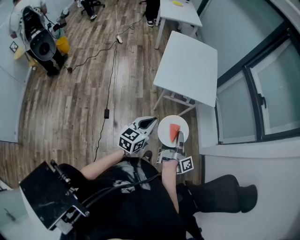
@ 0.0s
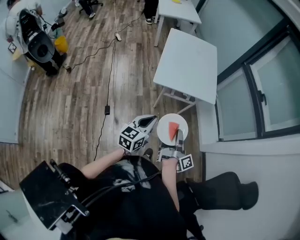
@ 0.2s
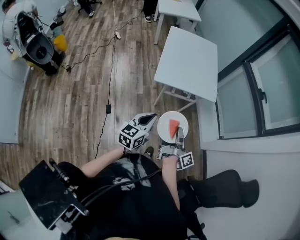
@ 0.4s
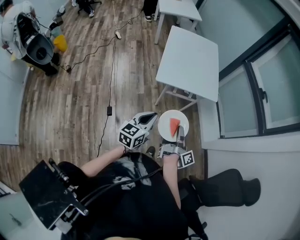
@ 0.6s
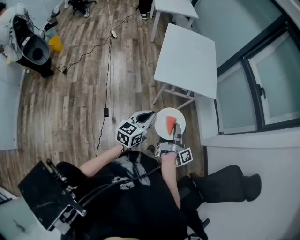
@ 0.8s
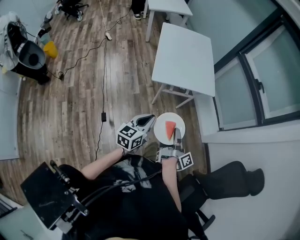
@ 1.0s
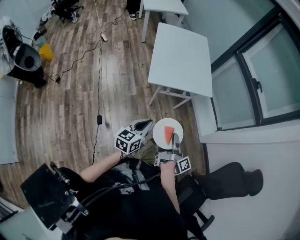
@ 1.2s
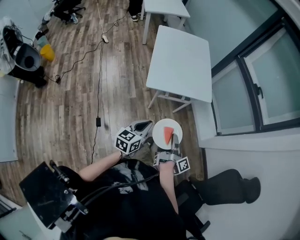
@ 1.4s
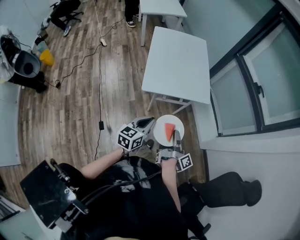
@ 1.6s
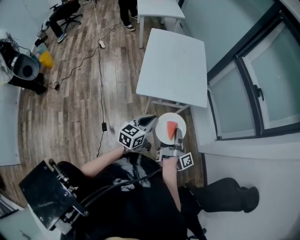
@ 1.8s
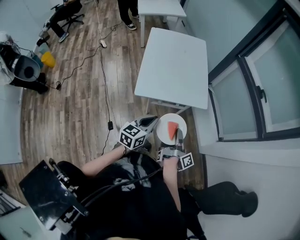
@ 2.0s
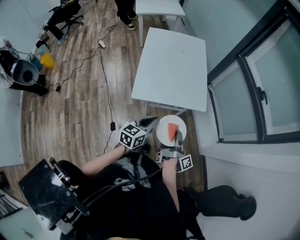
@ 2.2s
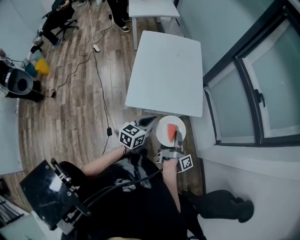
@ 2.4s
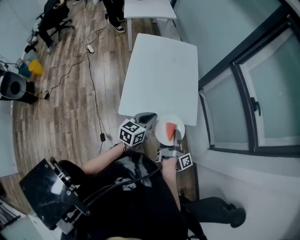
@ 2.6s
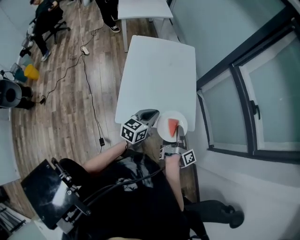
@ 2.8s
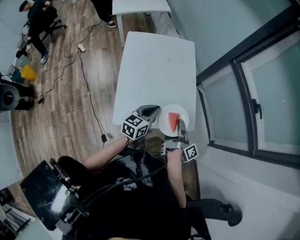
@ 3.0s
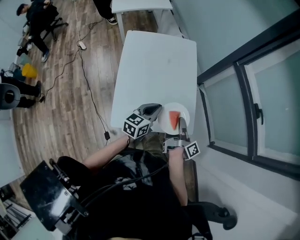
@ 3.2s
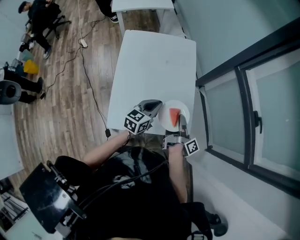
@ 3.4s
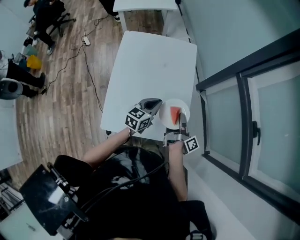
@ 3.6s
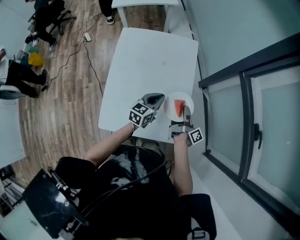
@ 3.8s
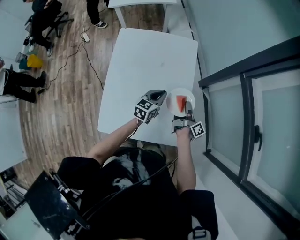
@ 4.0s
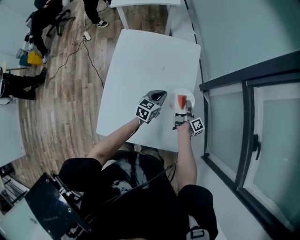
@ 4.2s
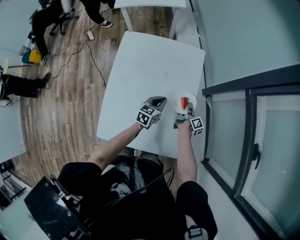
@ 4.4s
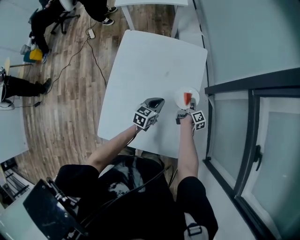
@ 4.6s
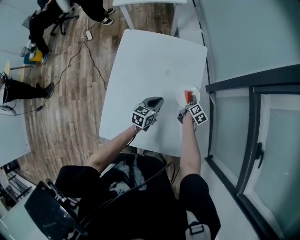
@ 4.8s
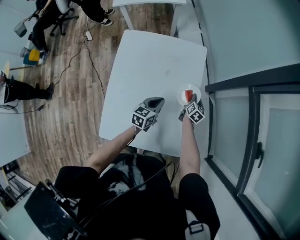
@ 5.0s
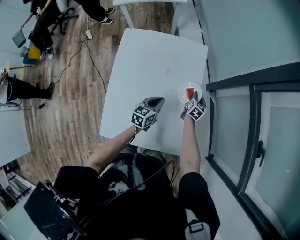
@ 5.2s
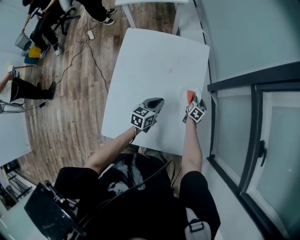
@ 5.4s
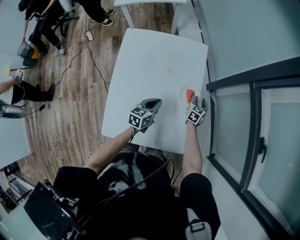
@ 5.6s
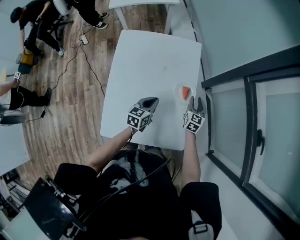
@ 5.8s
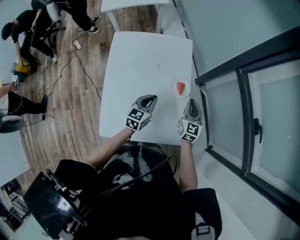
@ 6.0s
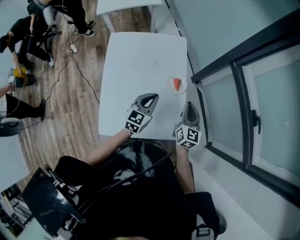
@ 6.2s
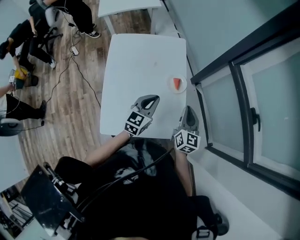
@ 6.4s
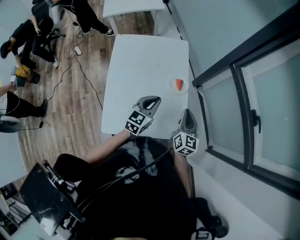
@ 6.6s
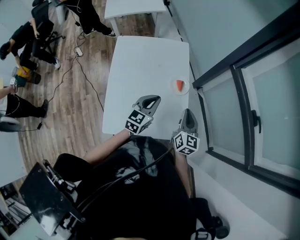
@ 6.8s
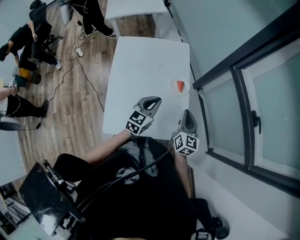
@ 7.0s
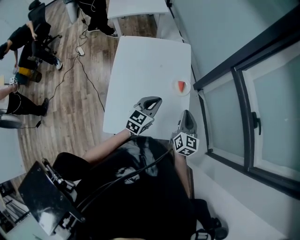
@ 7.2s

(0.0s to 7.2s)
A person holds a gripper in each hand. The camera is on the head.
0.0s - 1.4s: The left gripper shifts by some 10 cm.
1.4s - 2.8s: The left gripper ends up approximately 40 cm from where it was.
2.8s - 4.4s: The left gripper shifts by about 40 cm.
4.4s - 5.8s: The left gripper moves roughly 5 cm.
5.8s - 7.2s: The left gripper is displaced upward by roughly 15 cm, and rotates approximately 20 degrees.

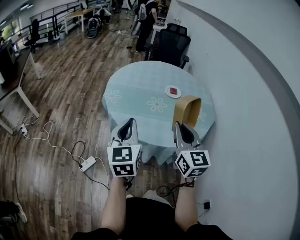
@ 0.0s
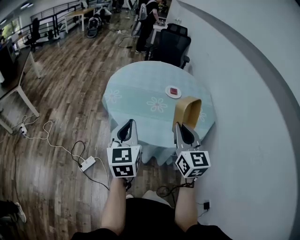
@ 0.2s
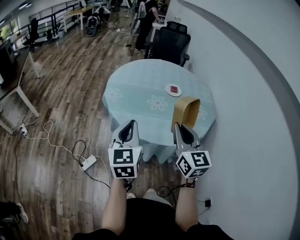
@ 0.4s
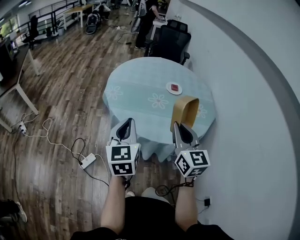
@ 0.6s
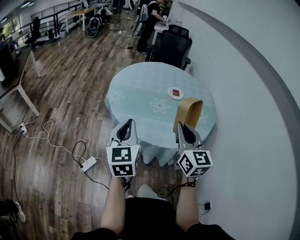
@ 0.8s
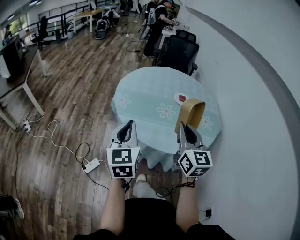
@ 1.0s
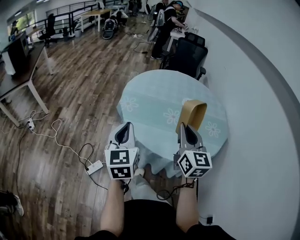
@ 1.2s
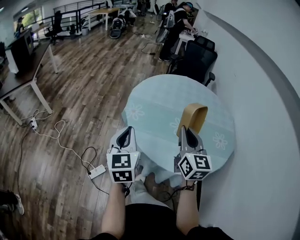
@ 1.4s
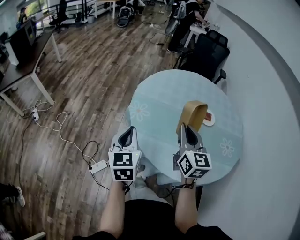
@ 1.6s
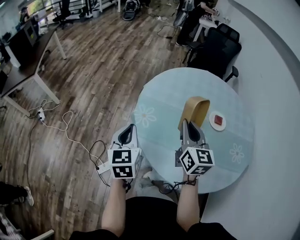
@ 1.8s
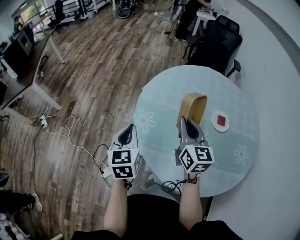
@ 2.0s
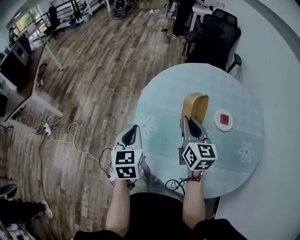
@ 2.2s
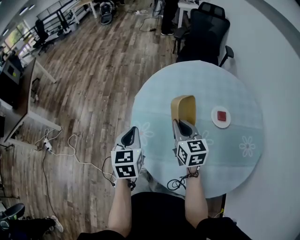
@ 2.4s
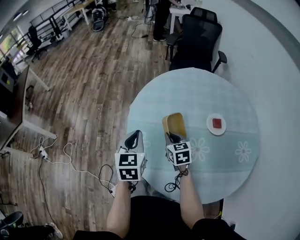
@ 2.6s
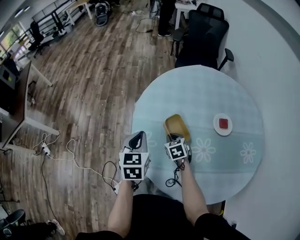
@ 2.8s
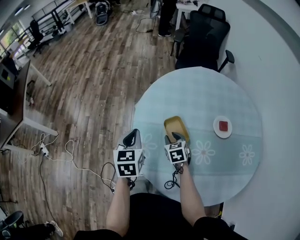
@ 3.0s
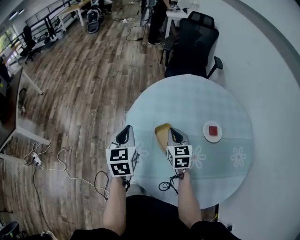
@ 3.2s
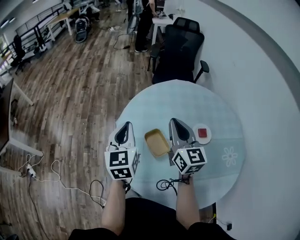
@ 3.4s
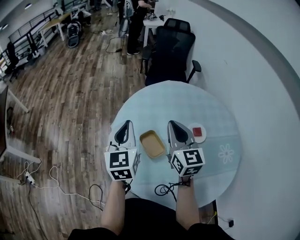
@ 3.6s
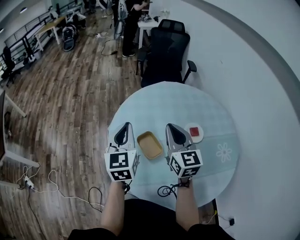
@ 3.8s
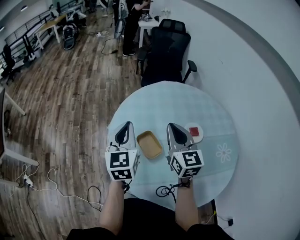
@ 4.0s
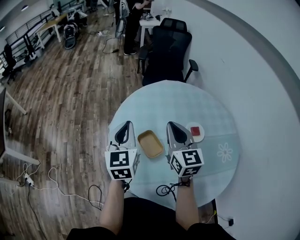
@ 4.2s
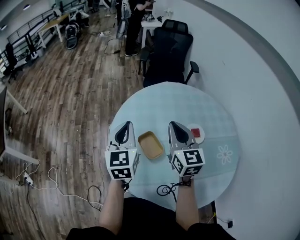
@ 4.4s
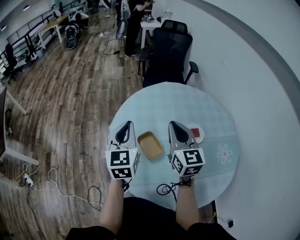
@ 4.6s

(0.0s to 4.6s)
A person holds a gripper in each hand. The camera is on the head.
0.0s - 1.6s: The grippers both shift forward and to the left by some 25 cm.
1.6s - 3.0s: The left gripper heads forward, covering roughly 35 cm, while the right gripper travels forward and downward by some 40 cm, angles its fingers downward, by roughly 40 degrees, and opens.
3.0s - 4.6s: The left gripper goes about 15 cm upward and to the right, and rotates roughly 20 degrees; the right gripper moves upward, some 30 cm, points its fingers approximately 40 degrees further upward, and closes.

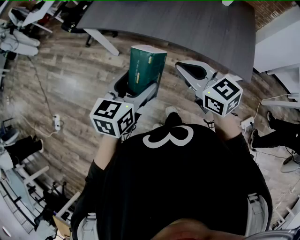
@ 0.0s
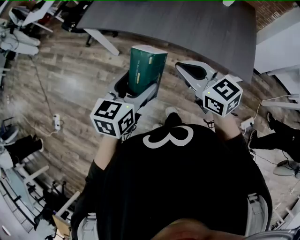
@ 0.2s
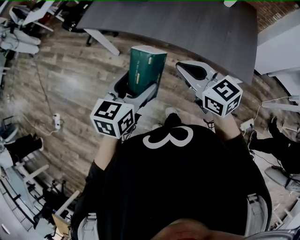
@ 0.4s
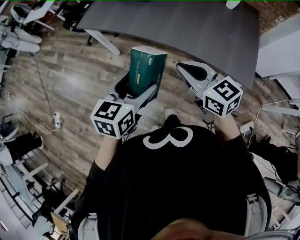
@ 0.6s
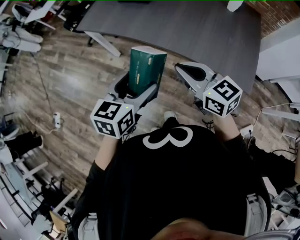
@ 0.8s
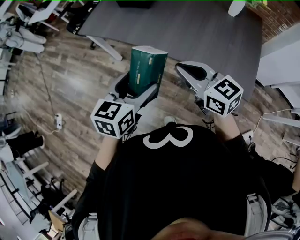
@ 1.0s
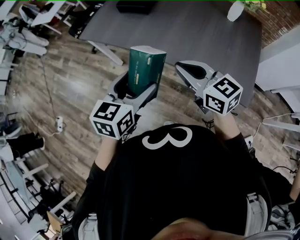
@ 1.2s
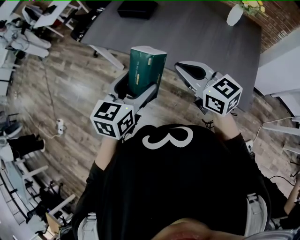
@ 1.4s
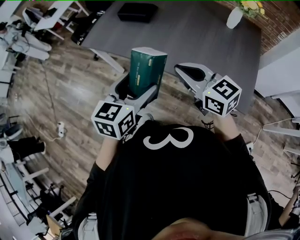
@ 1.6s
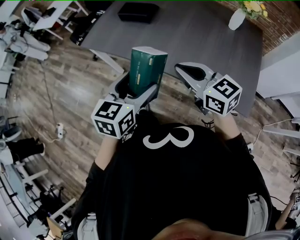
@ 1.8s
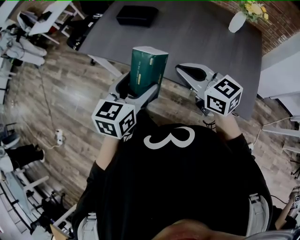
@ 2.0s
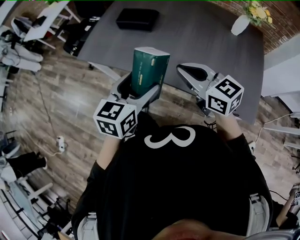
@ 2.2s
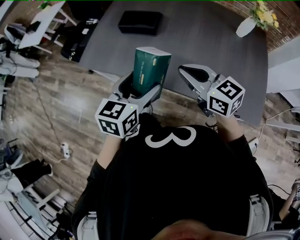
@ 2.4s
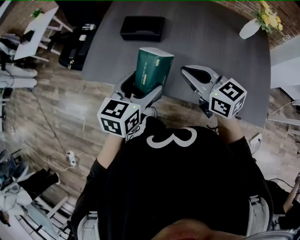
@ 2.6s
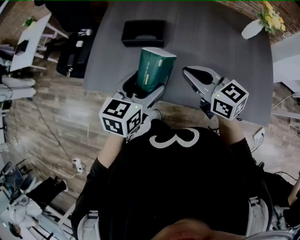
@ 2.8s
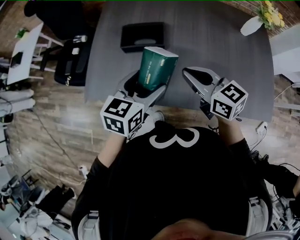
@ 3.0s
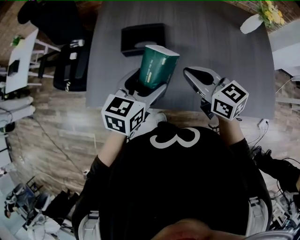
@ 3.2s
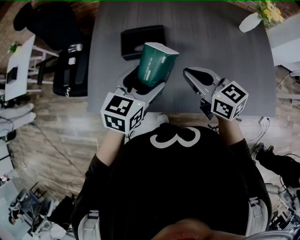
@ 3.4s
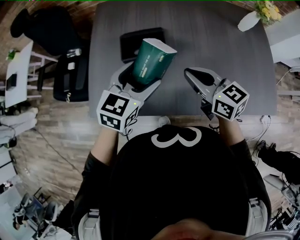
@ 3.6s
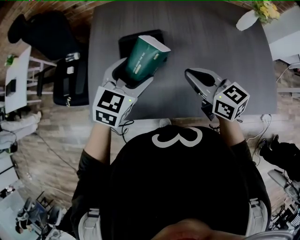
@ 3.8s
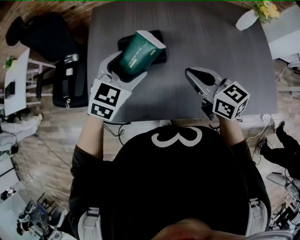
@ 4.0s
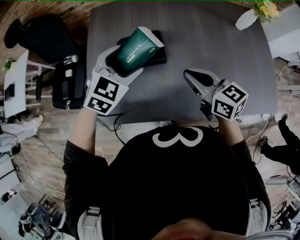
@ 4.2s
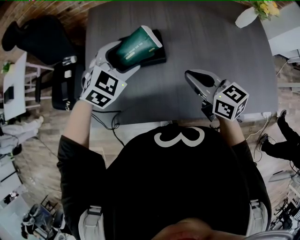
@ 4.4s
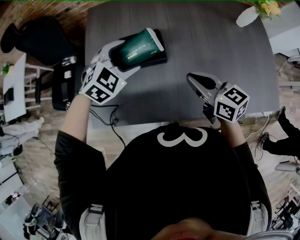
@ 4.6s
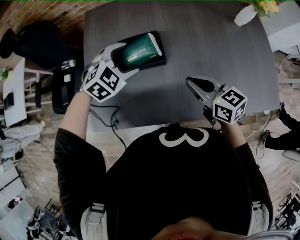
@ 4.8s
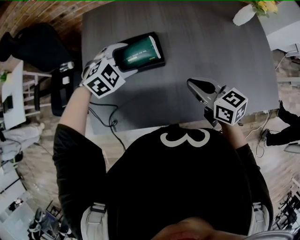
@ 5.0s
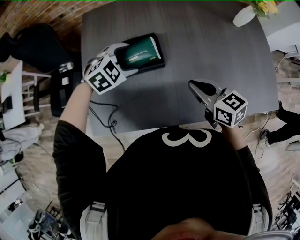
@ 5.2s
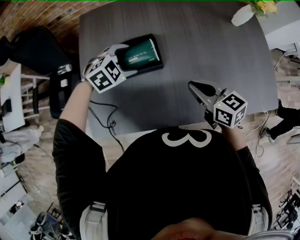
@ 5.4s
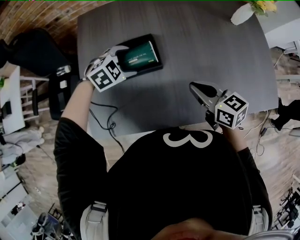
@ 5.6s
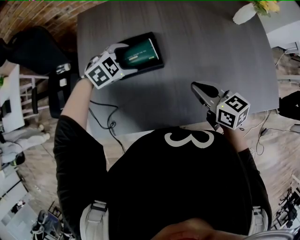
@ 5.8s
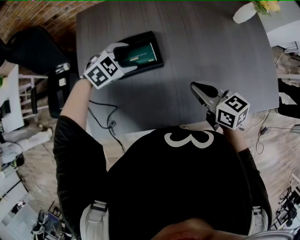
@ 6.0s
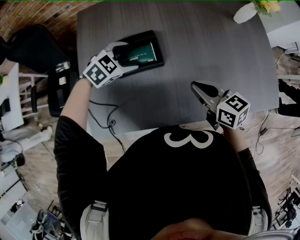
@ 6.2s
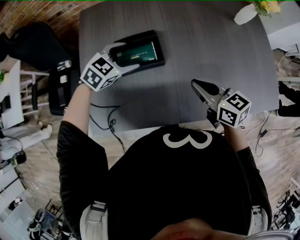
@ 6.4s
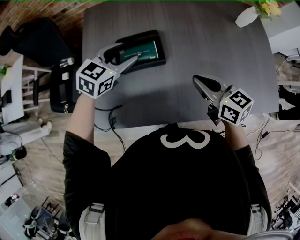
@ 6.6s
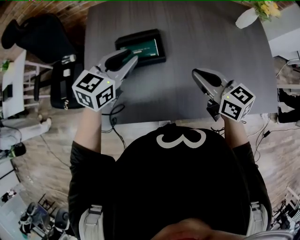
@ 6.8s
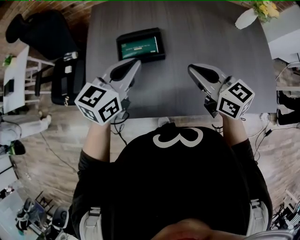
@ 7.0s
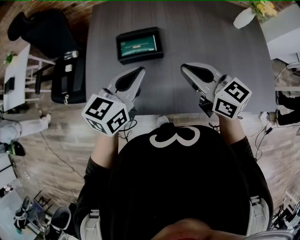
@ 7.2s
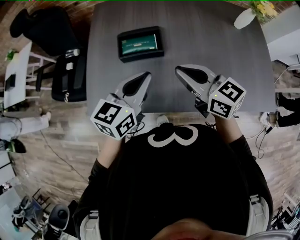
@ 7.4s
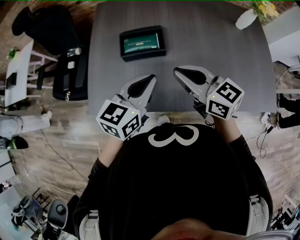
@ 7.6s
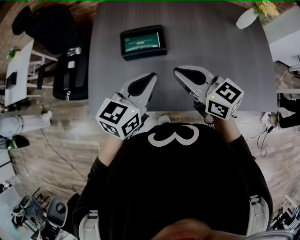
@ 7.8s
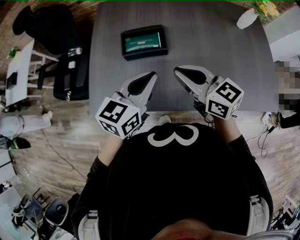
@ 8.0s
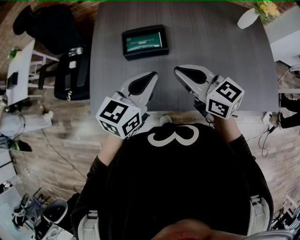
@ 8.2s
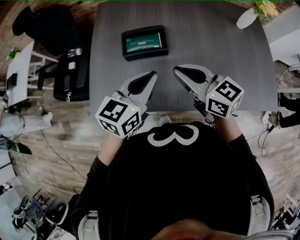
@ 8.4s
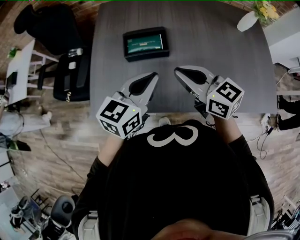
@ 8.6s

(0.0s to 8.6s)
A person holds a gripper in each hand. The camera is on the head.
0.0s - 1.4s: The two grippers go approximately 10 cm forward and to the right.
1.4s - 2.8s: Both grippers travel together forward, some 30 cm.
2.8s - 4.4s: The right gripper is displaced forward and downward by approximately 10 cm. Meanwhile the left gripper shifts some 20 cm forward, and rolls clockwise, seen from behind, by some 50 degrees.
4.4s - 5.8s: The left gripper heads downward and forward, covering about 15 cm, and swivels roughly 30 degrees, while the right gripper goes roughly 5 cm downward.
5.8s - 7.2s: The right gripper heads upward, covering some 10 cm, while the left gripper shifts about 25 cm upward and backward, tips its fingers upward by roughly 40 degrees, and closes its fingers.
7.2s - 8.6s: The grippers move only a little.

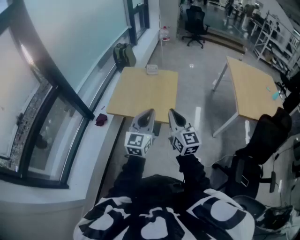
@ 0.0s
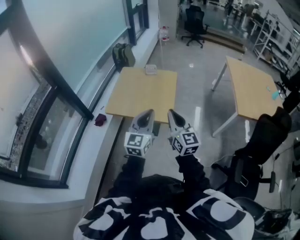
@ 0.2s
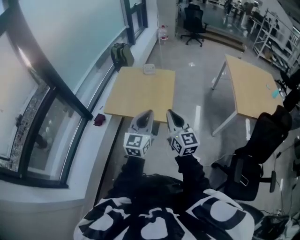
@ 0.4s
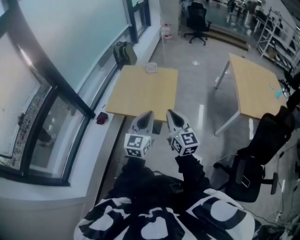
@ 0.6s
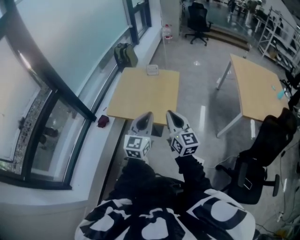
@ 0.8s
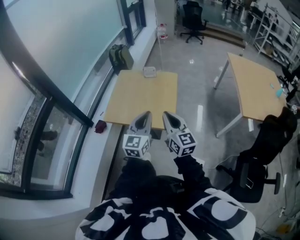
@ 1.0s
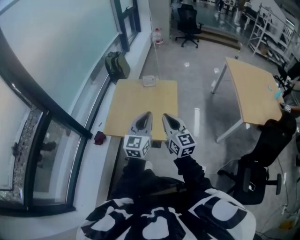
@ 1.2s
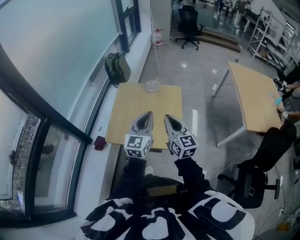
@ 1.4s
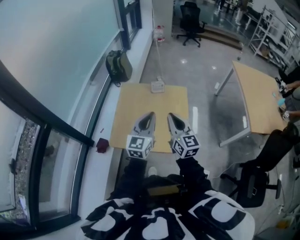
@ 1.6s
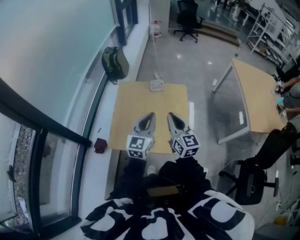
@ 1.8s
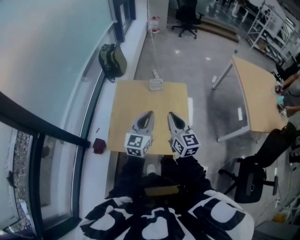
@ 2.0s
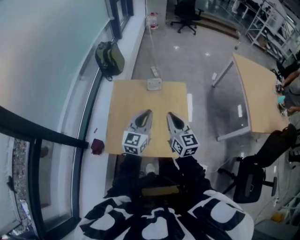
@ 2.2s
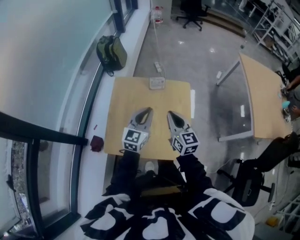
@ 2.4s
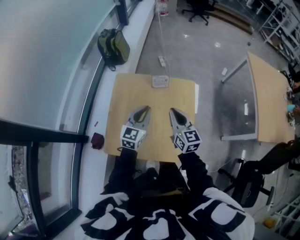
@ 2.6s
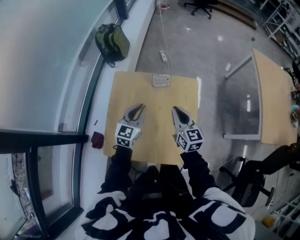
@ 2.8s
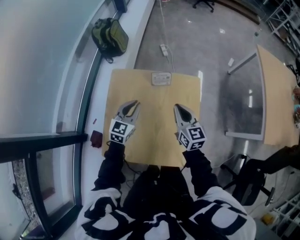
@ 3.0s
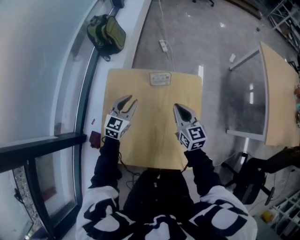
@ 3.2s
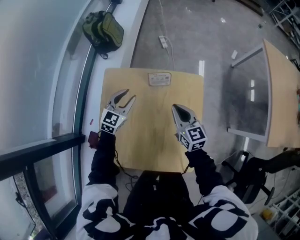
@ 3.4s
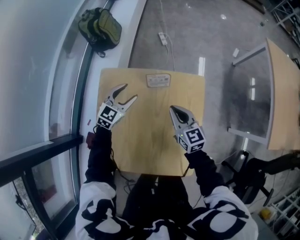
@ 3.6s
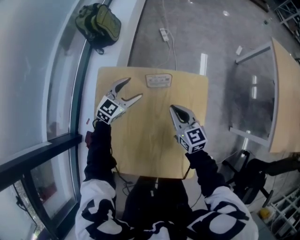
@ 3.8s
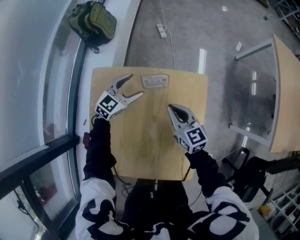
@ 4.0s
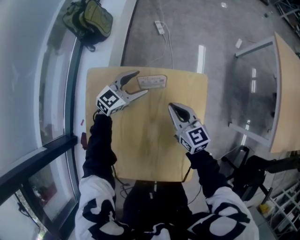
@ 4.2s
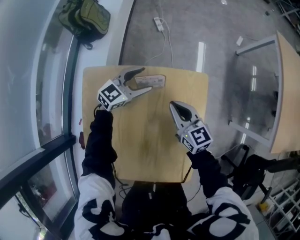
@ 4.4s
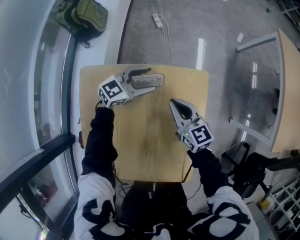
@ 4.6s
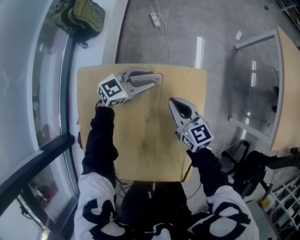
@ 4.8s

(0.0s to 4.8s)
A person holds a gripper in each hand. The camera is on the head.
0.0s - 1.6s: The two grippers go roughly 25 cm forward.
1.6s - 3.2s: Both grippers travel together forward and downward, approximately 35 cm. The left gripper swivels roughly 30 degrees.
3.2s - 4.8s: The left gripper shifts some 20 cm forward, to the right and downward, swivels some 40 degrees, and opens and closes again; the right gripper travels downward and forward by about 15 cm.
